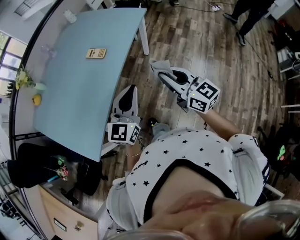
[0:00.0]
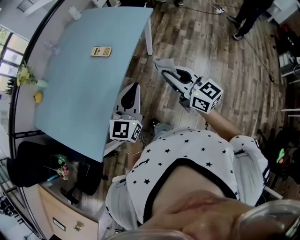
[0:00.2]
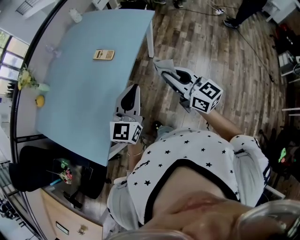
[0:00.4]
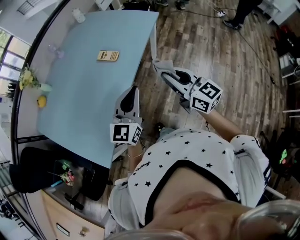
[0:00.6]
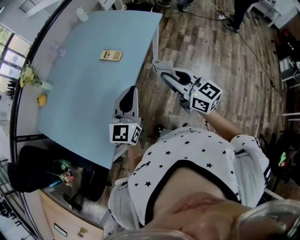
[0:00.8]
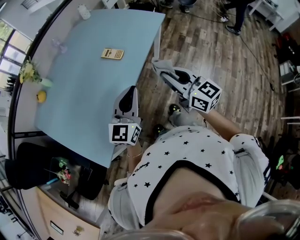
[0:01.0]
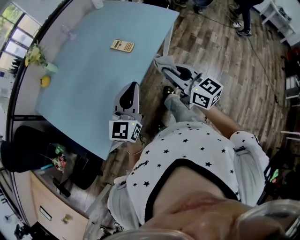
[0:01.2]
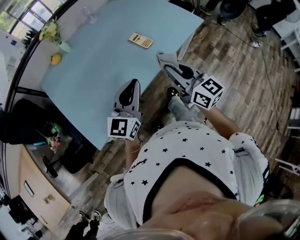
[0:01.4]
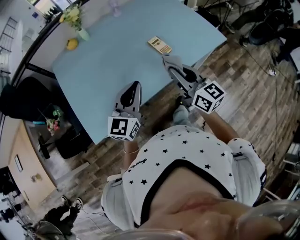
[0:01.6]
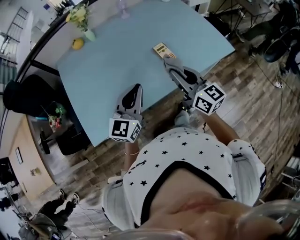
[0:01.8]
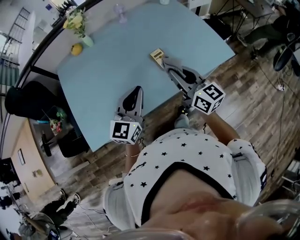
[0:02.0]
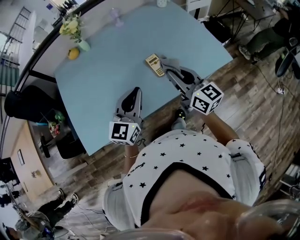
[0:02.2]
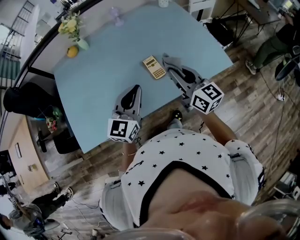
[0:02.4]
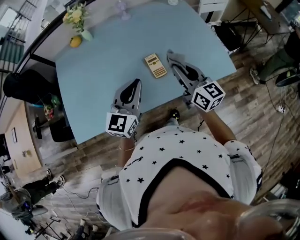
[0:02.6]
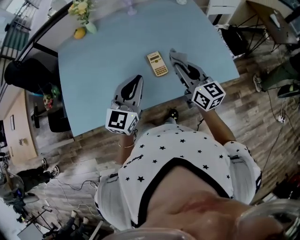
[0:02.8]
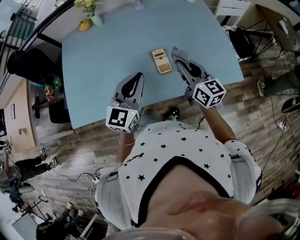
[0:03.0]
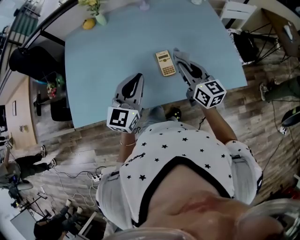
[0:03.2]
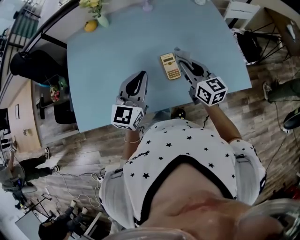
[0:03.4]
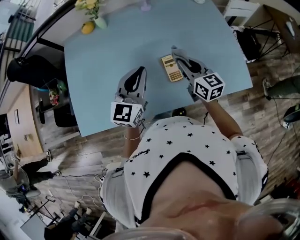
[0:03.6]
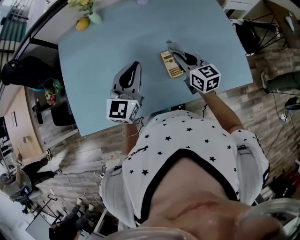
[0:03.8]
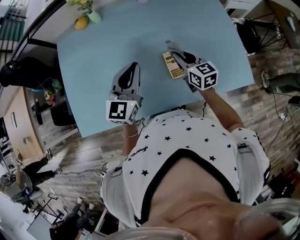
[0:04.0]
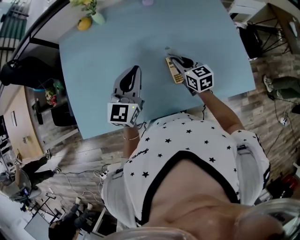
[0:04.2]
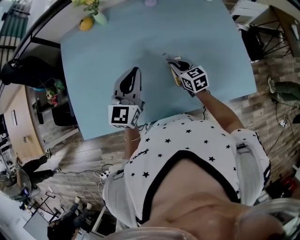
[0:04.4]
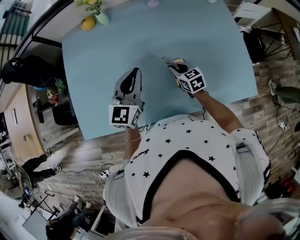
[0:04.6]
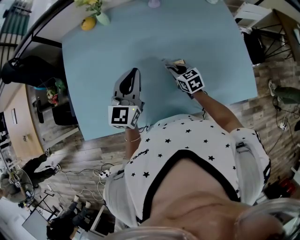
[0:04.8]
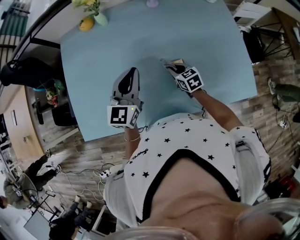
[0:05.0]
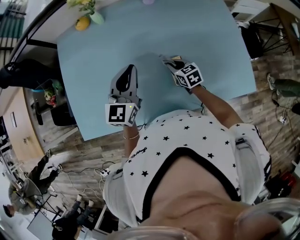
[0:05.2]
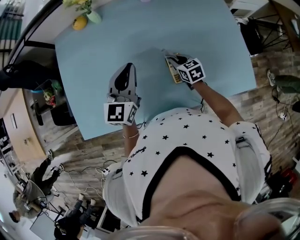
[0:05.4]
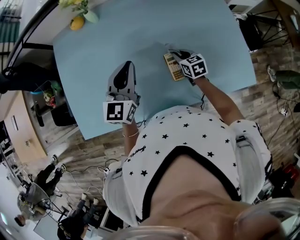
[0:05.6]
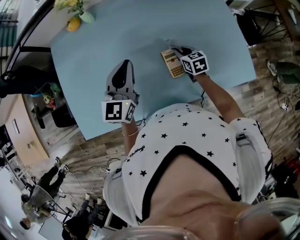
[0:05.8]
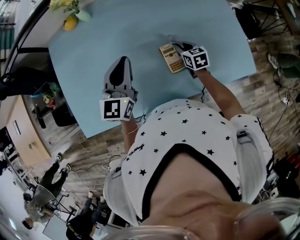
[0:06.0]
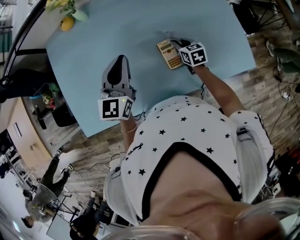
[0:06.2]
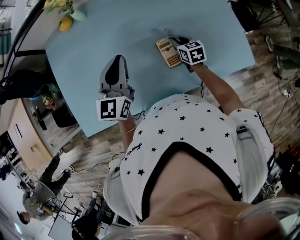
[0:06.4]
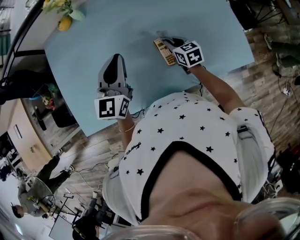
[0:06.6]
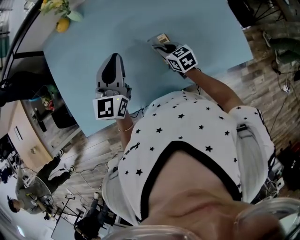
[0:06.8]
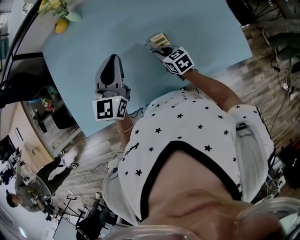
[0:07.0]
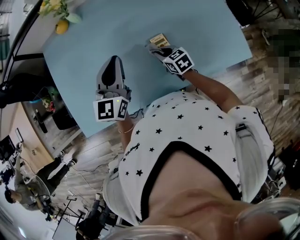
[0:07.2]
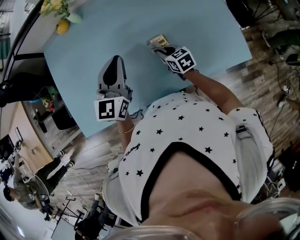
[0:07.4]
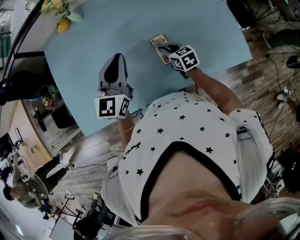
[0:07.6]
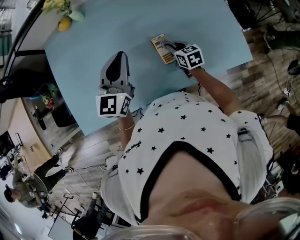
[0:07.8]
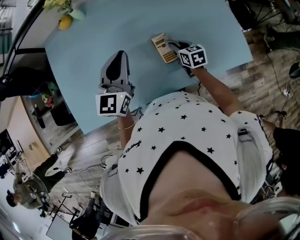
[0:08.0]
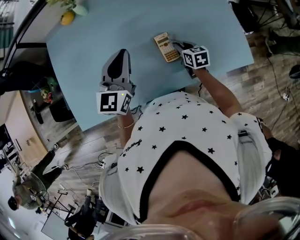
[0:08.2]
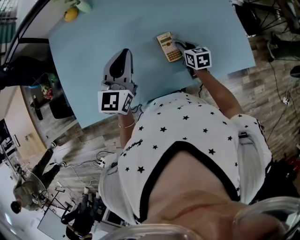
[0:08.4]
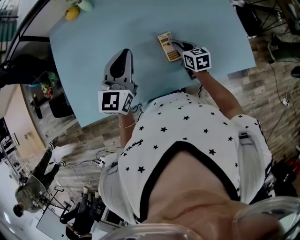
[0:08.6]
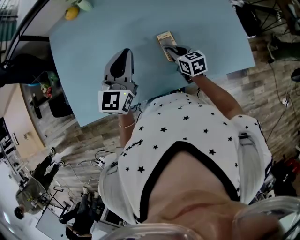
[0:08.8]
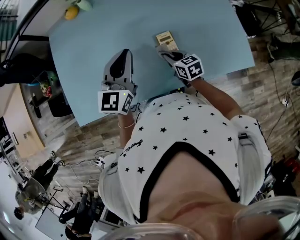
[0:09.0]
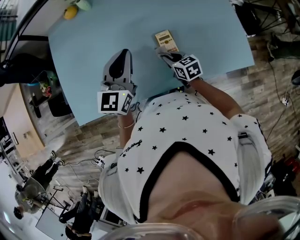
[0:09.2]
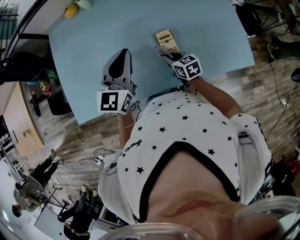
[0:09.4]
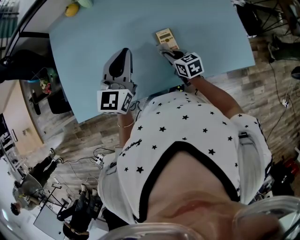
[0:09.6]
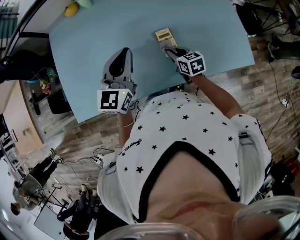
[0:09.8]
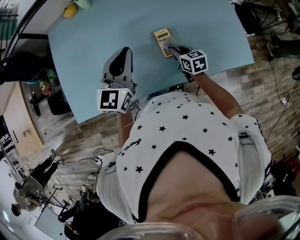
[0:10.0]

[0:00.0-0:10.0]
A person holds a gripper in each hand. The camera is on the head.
0:00.0 to 0:01.4: Both grippers travel together to the left and forward, approximately 20 cm. The left gripper rotates approximately 20 degrees.
0:01.4 to 0:02.8: The two grippers go roughly 25 cm forward and to the right. The right gripper swivels approximately 20 degrees. The left gripper changes its angle by roughly 30 degrees.
0:02.8 to 0:04.2: The left gripper shifts approximately 15 cm forward and to the left. The right gripper moves downward, forward and to the left, roughly 20 cm, and rotates approximately 20 degrees.
0:04.2 to 0:05.8: The right gripper travels downward by roughly 10 cm.
0:05.8 to 0:07.2: The right gripper goes approximately 10 cm to the left and backward.
0:07.2 to 0:08.6: The right gripper is displaced to the right by roughly 5 cm.

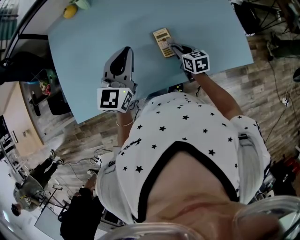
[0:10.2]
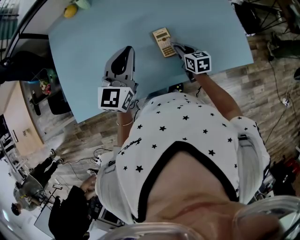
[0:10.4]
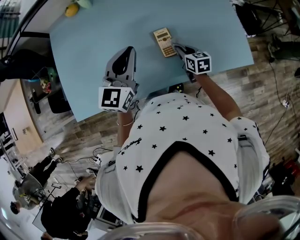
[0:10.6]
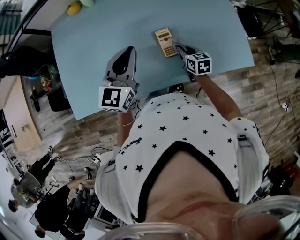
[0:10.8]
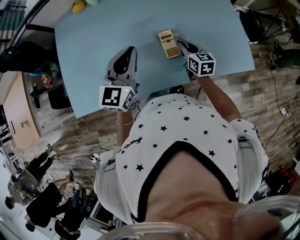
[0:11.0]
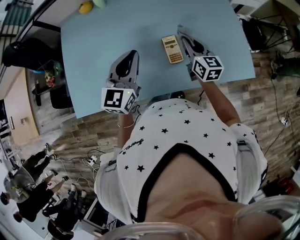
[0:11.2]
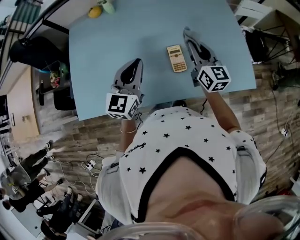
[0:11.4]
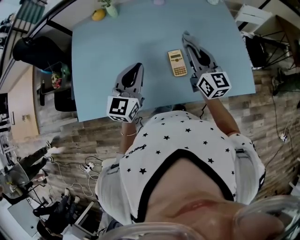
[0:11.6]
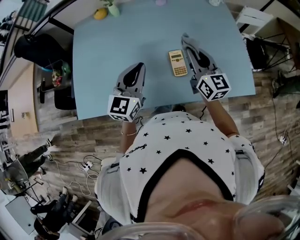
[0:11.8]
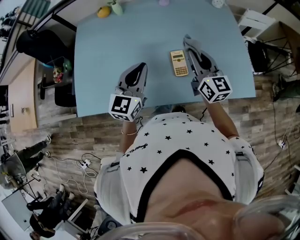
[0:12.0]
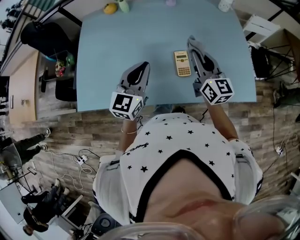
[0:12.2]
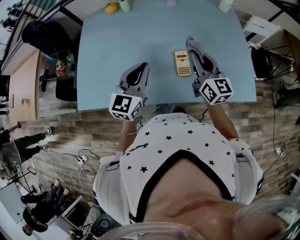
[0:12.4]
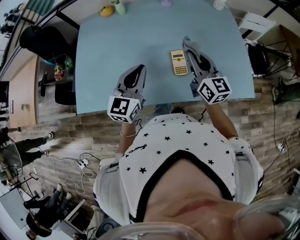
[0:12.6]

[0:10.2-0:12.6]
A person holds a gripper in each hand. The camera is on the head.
0:10.2 to 0:11.4: The right gripper is displaced upward by some 20 cm, and angles its fingers upward, by approximately 30 degrees.
0:11.4 to 0:12.6: The right gripper ends up approximately 5 cm from where it was.

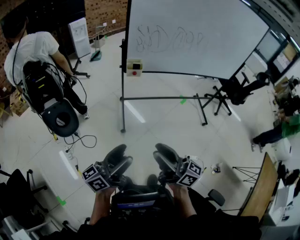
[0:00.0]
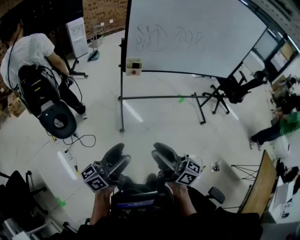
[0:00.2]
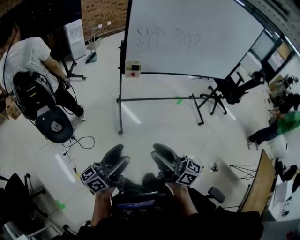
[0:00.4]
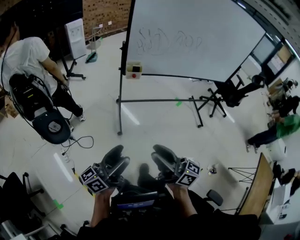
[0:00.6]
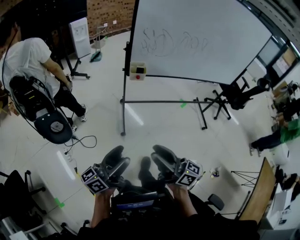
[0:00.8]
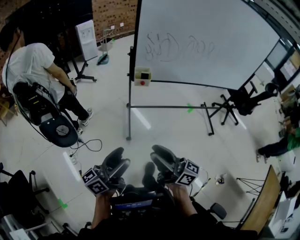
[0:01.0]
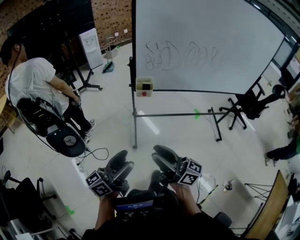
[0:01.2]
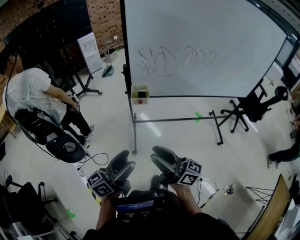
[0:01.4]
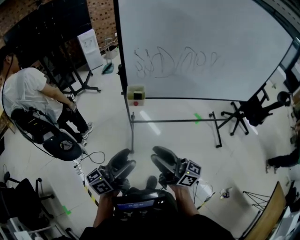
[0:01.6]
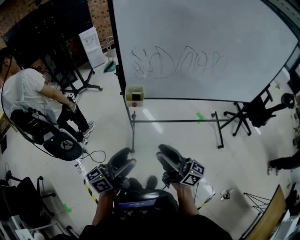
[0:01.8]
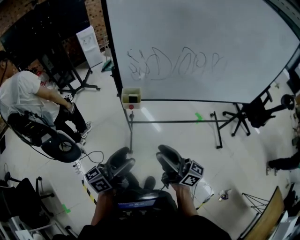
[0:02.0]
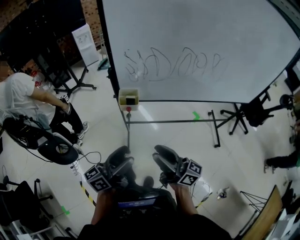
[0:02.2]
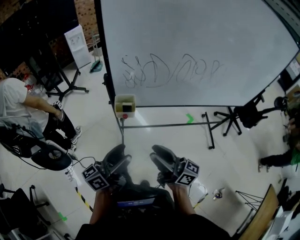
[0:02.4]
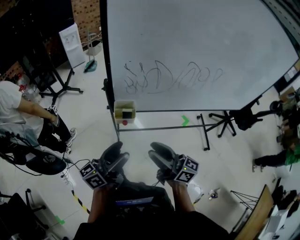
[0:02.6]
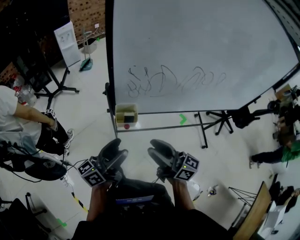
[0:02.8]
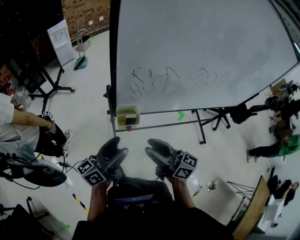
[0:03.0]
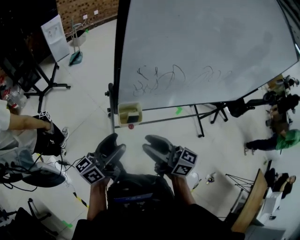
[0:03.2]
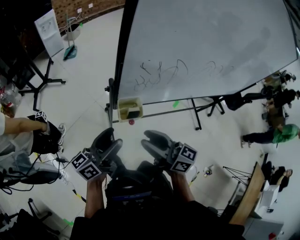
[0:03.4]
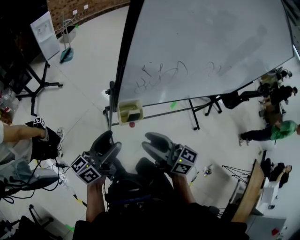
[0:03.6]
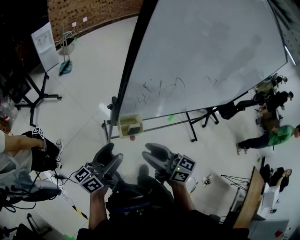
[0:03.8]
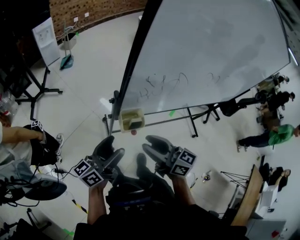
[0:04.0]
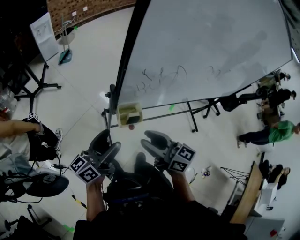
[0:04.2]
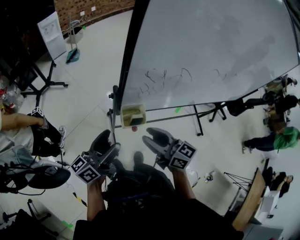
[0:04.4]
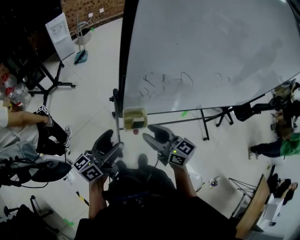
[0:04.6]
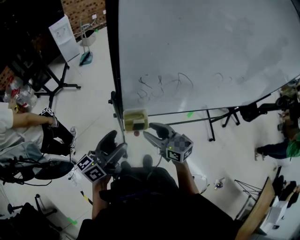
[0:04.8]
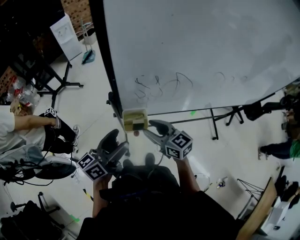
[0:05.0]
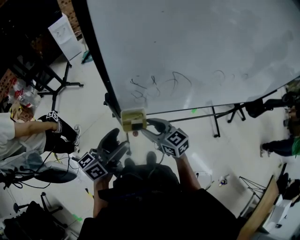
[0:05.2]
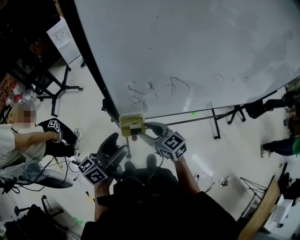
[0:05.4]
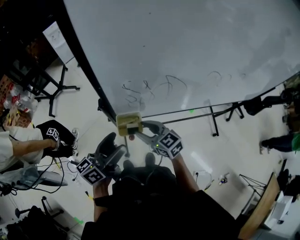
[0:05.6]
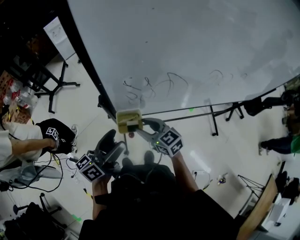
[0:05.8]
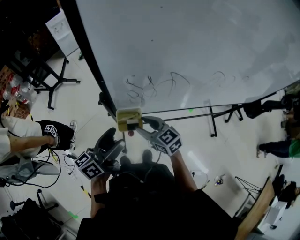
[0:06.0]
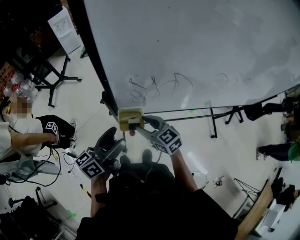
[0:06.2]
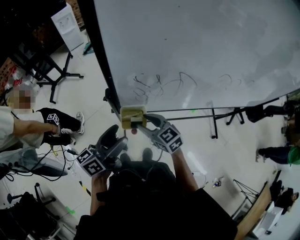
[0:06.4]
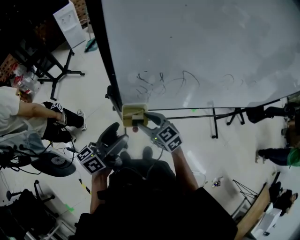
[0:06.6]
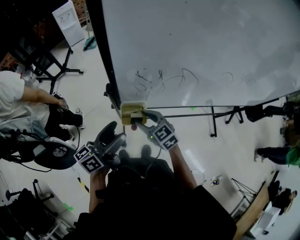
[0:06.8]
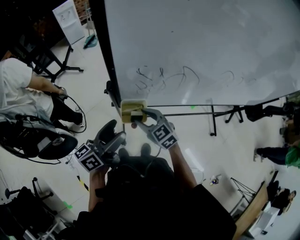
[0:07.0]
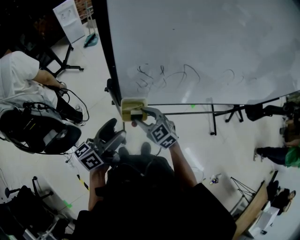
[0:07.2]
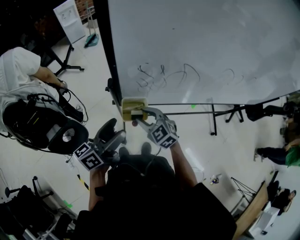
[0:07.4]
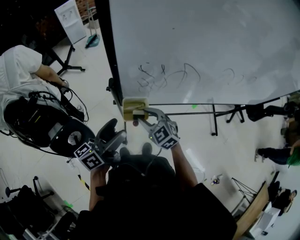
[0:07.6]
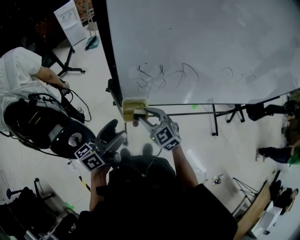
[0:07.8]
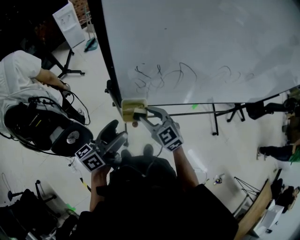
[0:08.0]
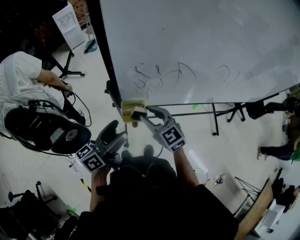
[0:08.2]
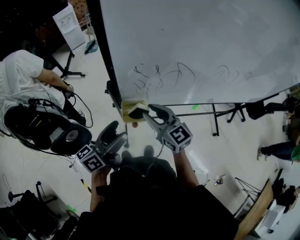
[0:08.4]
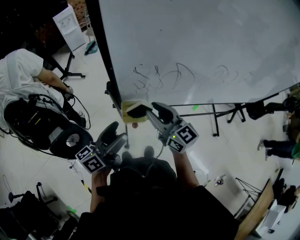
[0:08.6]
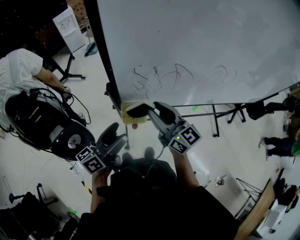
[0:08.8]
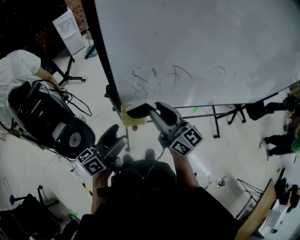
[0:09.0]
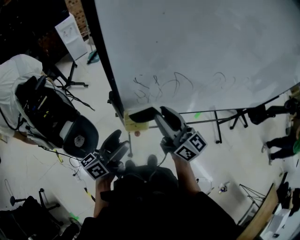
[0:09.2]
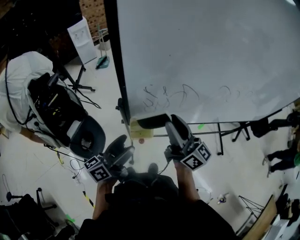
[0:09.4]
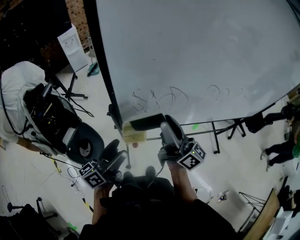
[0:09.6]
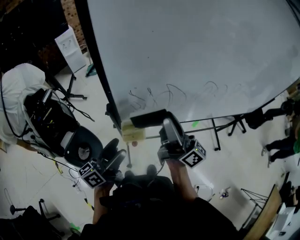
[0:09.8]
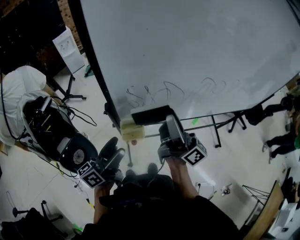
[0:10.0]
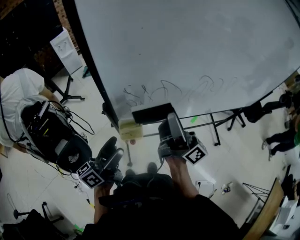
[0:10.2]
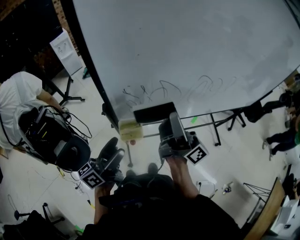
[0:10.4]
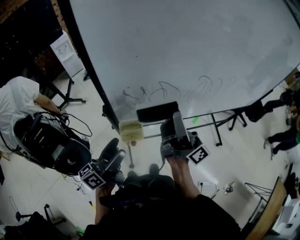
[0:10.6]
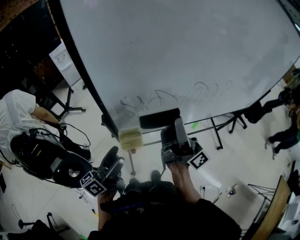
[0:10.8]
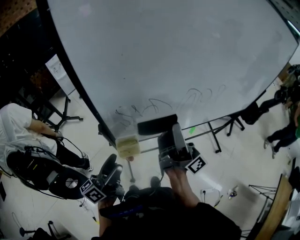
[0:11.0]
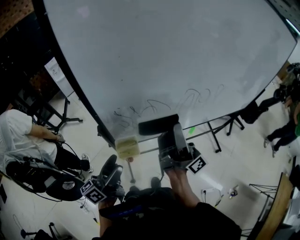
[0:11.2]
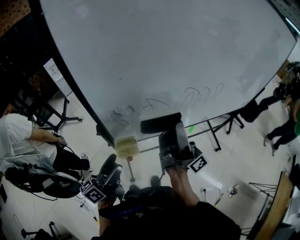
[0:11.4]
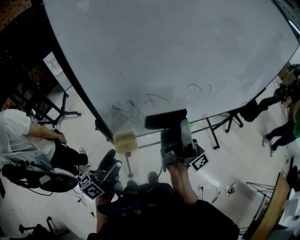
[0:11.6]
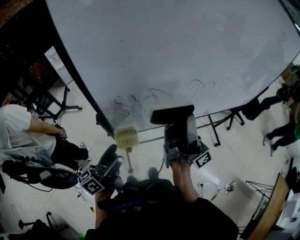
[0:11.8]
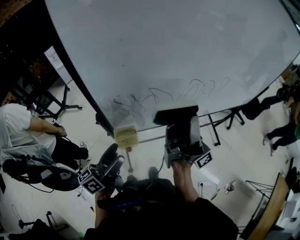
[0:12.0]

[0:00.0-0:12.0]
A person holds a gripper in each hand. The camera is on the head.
0:00.0 to 0:01.6: Both grippers travel together forward, some 20 cm.
0:01.6 to 0:03.0: The two grippers go about 25 cm forward.
0:03.0 to 0:04.4: The left gripper shifts roughly 10 cm to the left and forward; the right gripper shifts roughly 5 cm forward.
0:04.4 to 0:06.0: The left gripper heads to the right, covering approximately 5 cm, while the right gripper shifts roughly 15 cm downward and forward, and turns by roughly 30 degrees.
0:06.0 to 0:07.6: The right gripper swivels about 20 degrees.
0:07.6 to 0:09.0: The right gripper shifts about 15 cm upward, and angles its fingers upward, by about 40 degrees.
0:09.0 to 0:10.4: The right gripper goes roughly 15 cm upward and to the right, and tips its fingers upward by about 30 degrees.
0:10.4 to 0:12.0: The right gripper goes about 10 cm to the right.
